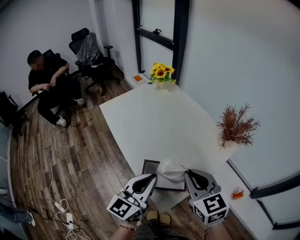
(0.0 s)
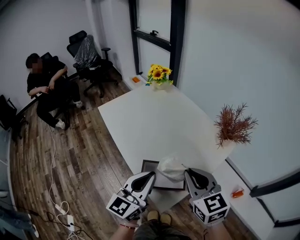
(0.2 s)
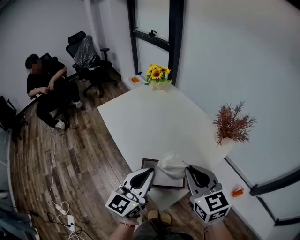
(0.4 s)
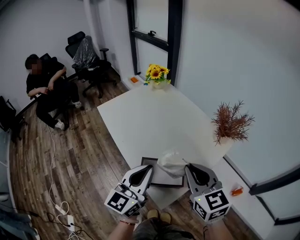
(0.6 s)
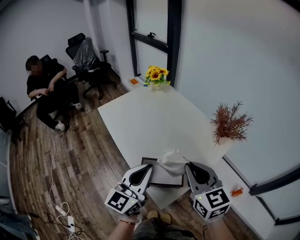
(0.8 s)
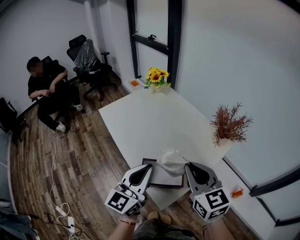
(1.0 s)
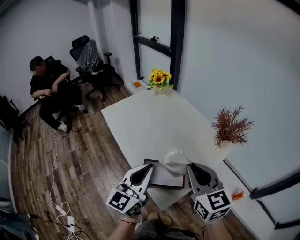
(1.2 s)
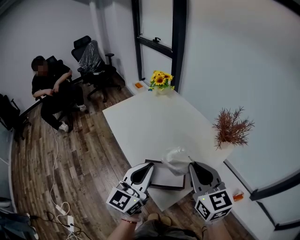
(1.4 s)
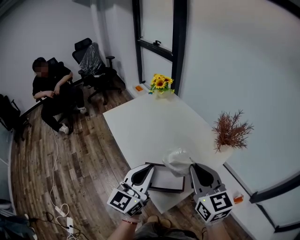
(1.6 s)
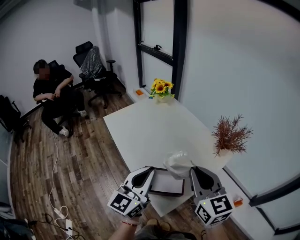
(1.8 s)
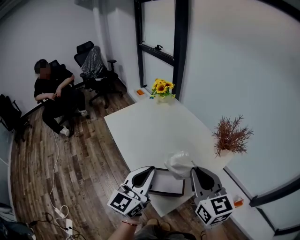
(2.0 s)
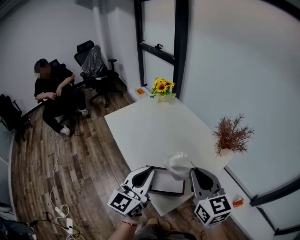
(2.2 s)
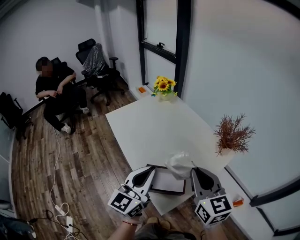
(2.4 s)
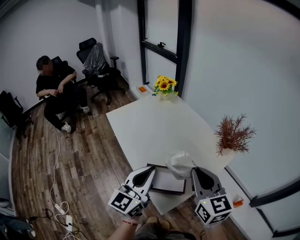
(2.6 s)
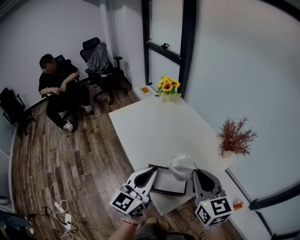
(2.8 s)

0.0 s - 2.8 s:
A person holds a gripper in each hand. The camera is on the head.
0.0 s - 1.4 s: The right gripper goes approximately 5 cm upward.
1.4 s - 2.8 s: There are only small adjustments of the grippers.

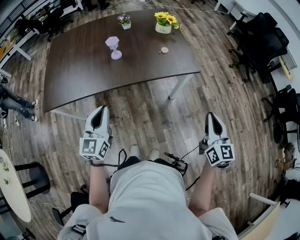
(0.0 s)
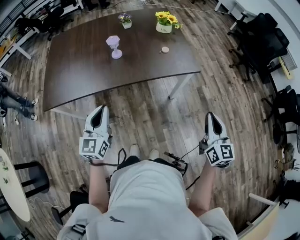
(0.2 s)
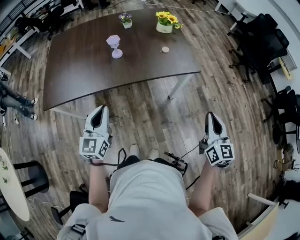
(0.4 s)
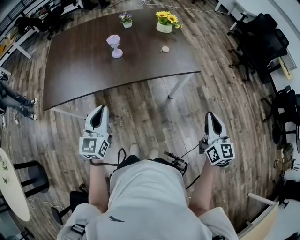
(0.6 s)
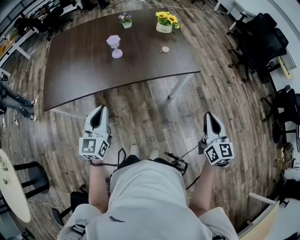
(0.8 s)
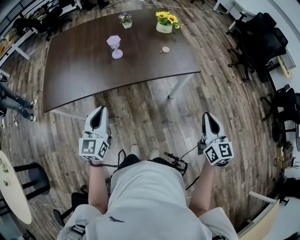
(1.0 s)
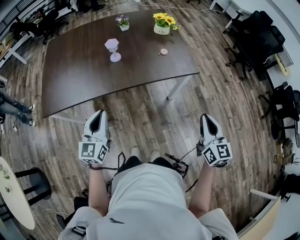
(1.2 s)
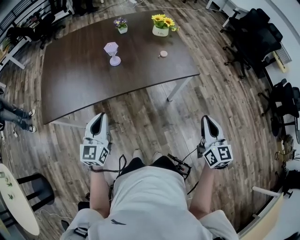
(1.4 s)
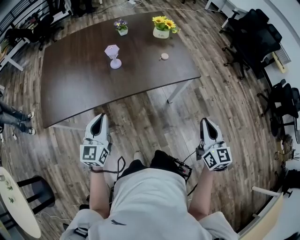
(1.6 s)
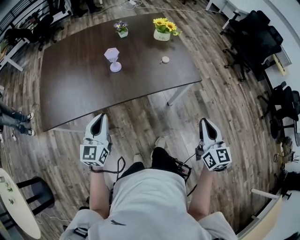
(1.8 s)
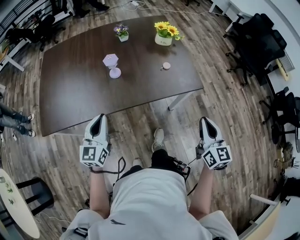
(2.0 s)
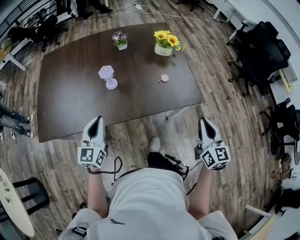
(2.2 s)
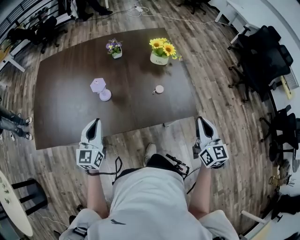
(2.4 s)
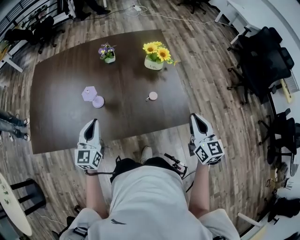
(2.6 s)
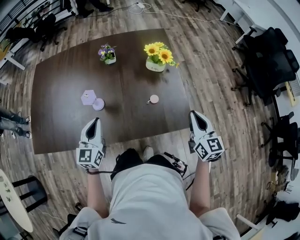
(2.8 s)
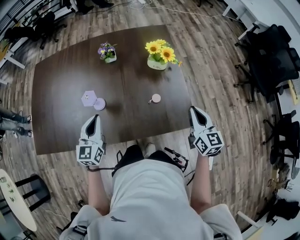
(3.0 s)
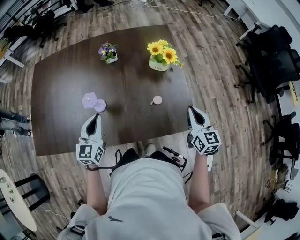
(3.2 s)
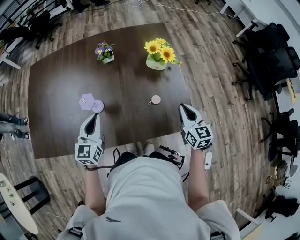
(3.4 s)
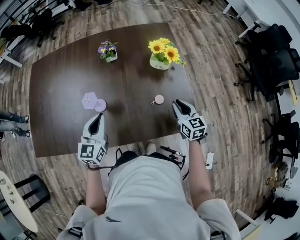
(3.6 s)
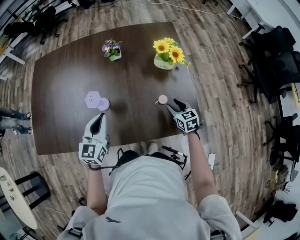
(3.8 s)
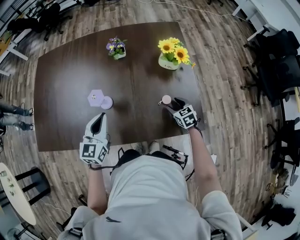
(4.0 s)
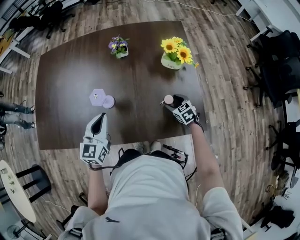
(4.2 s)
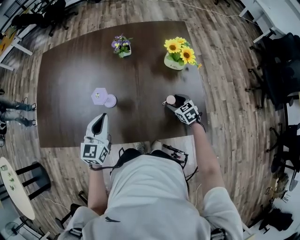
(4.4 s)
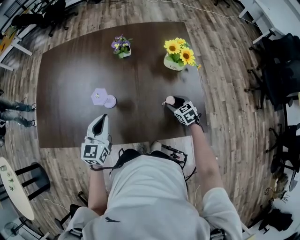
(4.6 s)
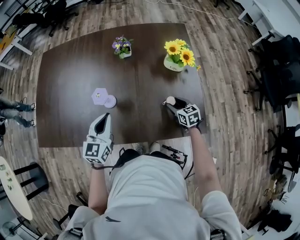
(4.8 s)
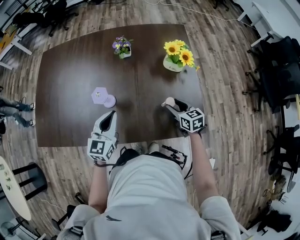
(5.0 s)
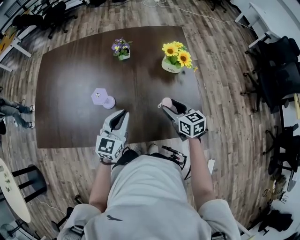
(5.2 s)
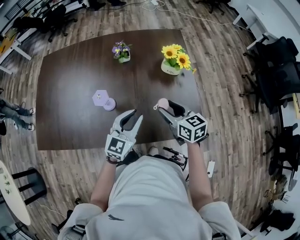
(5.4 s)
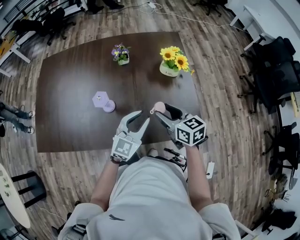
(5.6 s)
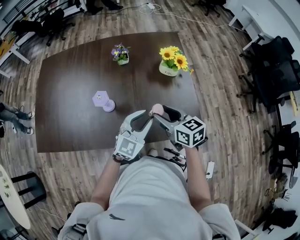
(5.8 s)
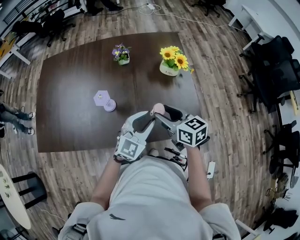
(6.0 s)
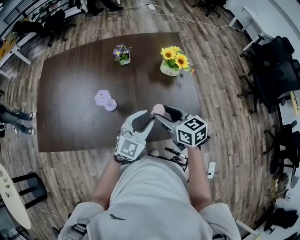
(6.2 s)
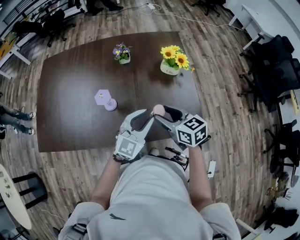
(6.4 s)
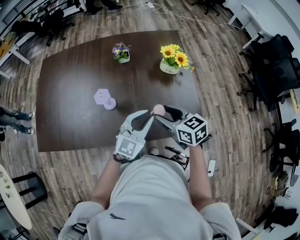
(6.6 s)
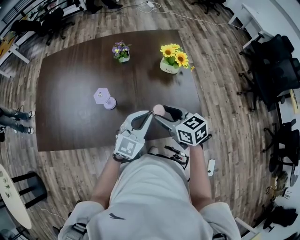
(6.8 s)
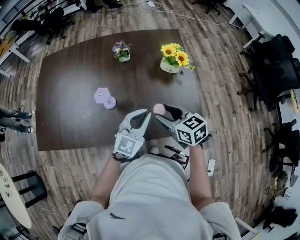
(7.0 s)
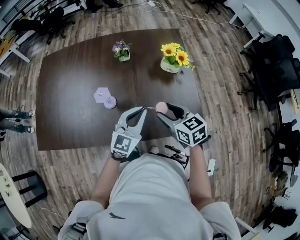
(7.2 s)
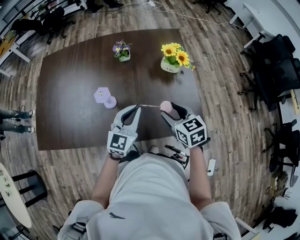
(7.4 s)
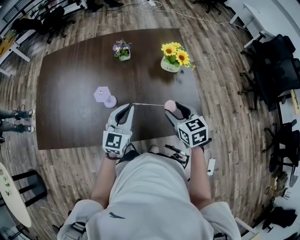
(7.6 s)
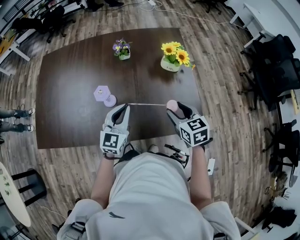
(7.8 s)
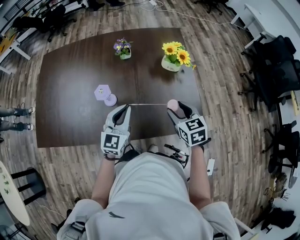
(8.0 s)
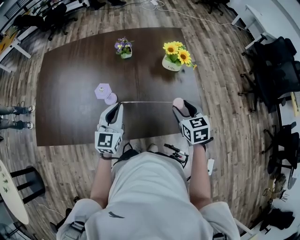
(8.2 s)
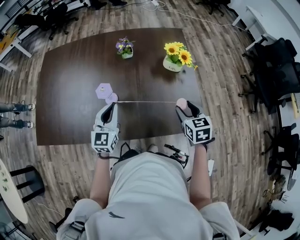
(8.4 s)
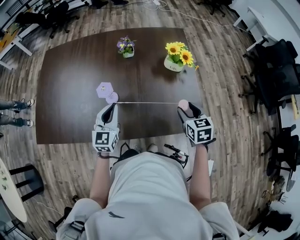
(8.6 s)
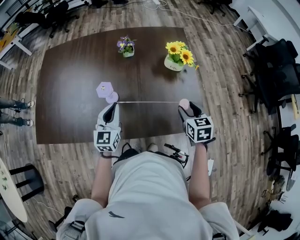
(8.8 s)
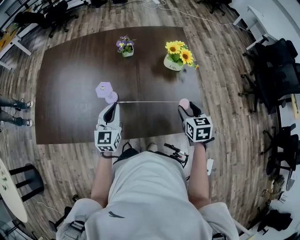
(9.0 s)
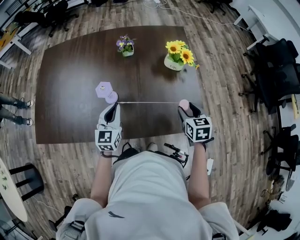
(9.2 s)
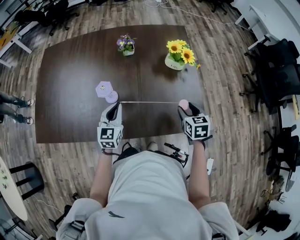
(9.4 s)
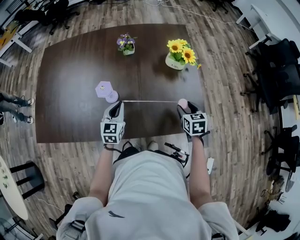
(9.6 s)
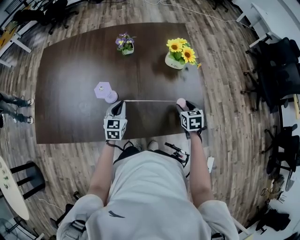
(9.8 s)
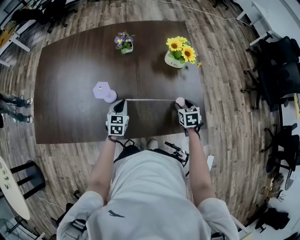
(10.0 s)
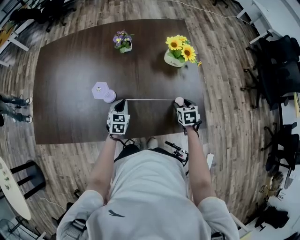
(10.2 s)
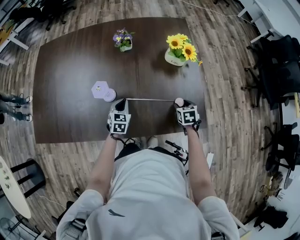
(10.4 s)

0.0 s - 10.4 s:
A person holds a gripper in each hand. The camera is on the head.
0.0 s - 1.4 s: The left gripper moves some 5 cm. Meanwhile the right gripper shifts about 5 cm to the left.
1.4 s - 3.0 s: The grippers both shift forward by about 35 cm.
3.0 s - 4.4 s: The right gripper heads downward, forward and to the left, covering some 30 cm, tips its fingers downward by approximately 30 degrees, and opens.
4.4 s - 6.0 s: The right gripper goes about 25 cm upward, and swivels approximately 30 degrees; the left gripper moves to the right, some 20 cm, turns by roughly 30 degrees, and opens.
6.0 s - 7.4 s: The left gripper is displaced to the left by roughly 5 cm, and closes.
7.4 s - 9.0 s: The left gripper is displaced to the left by about 10 cm. Meanwhile the right gripper heads to the right, covering about 10 cm.
9.0 s - 10.4 s: Both grippers travel together downward, roughly 20 cm. The left gripper turns by some 30 degrees.

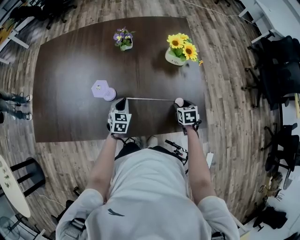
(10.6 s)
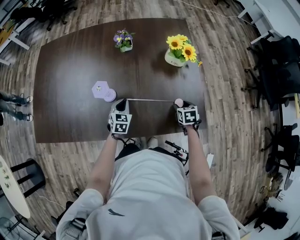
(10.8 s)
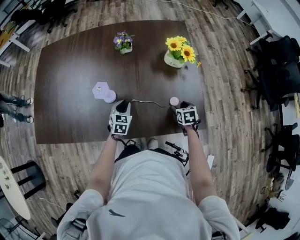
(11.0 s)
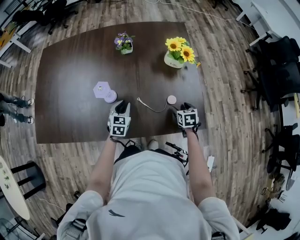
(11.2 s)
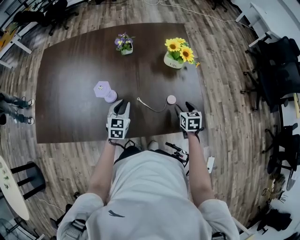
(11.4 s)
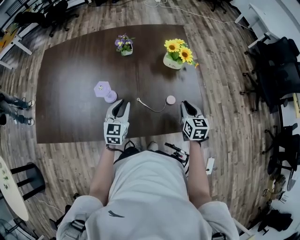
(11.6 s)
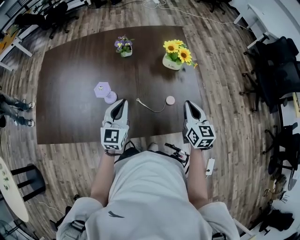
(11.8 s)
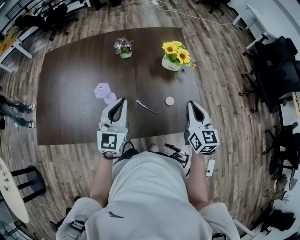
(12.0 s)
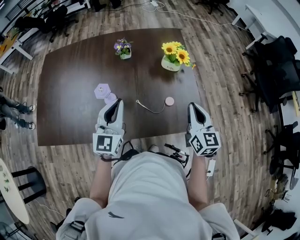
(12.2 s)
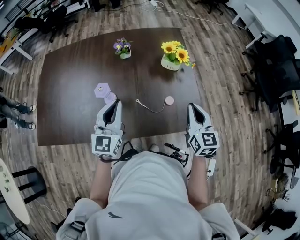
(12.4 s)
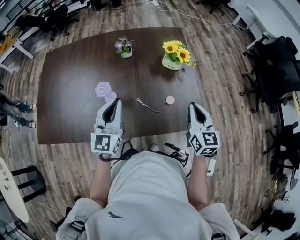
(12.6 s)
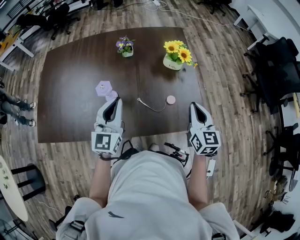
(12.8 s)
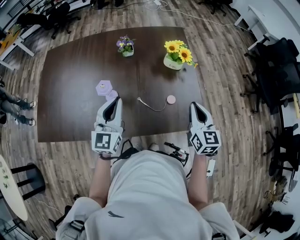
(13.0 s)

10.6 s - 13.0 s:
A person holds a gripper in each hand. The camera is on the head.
10.6 s - 11.8 s: The grippers both shift upward by about 20 cm. The right gripper angles its fingers upward, by some 40 degrees, and closes its fingers, while the left gripper tips its fingers upward by roughly 30 degrees.
11.8 s - 13.0 s: The right gripper changes place by roughly 5 cm, while the left gripper goes approximately 5 cm upward.

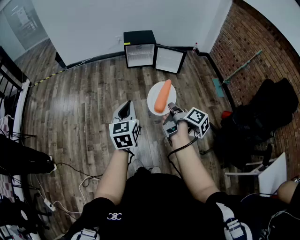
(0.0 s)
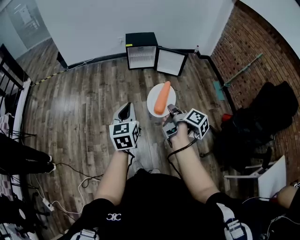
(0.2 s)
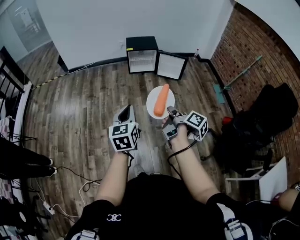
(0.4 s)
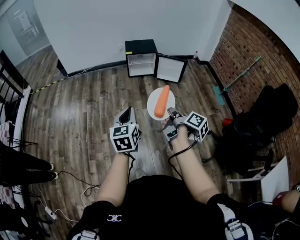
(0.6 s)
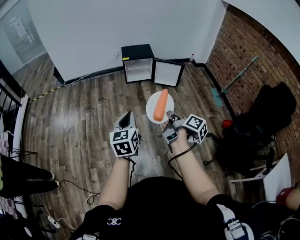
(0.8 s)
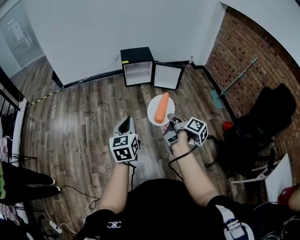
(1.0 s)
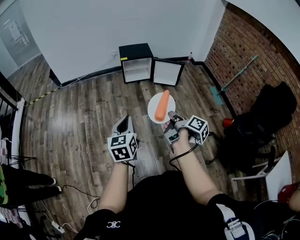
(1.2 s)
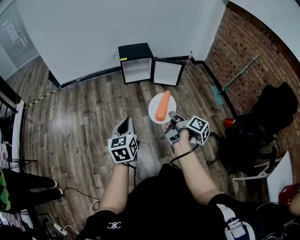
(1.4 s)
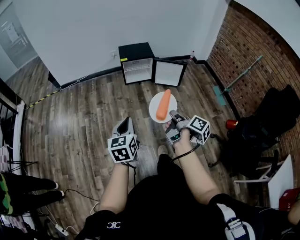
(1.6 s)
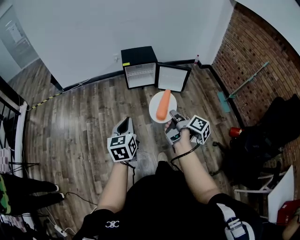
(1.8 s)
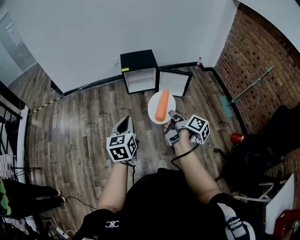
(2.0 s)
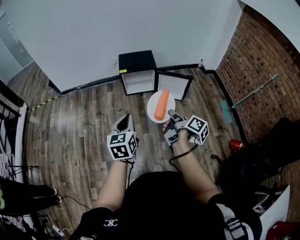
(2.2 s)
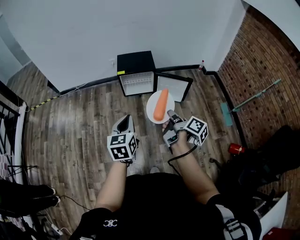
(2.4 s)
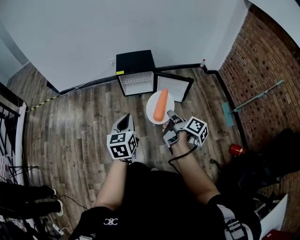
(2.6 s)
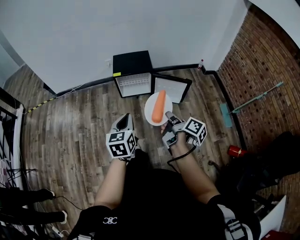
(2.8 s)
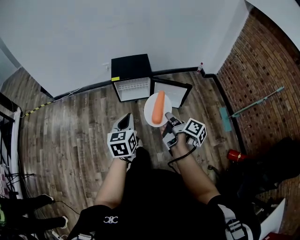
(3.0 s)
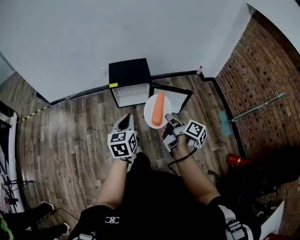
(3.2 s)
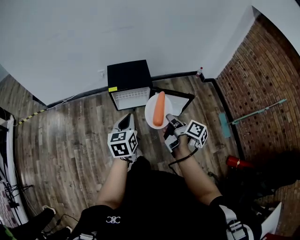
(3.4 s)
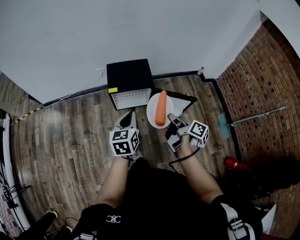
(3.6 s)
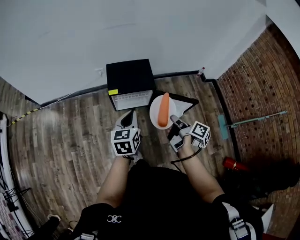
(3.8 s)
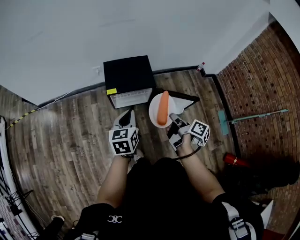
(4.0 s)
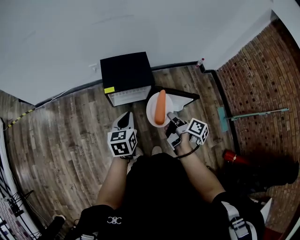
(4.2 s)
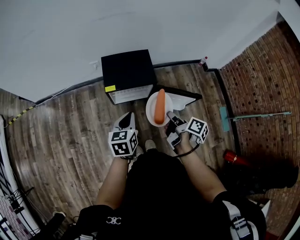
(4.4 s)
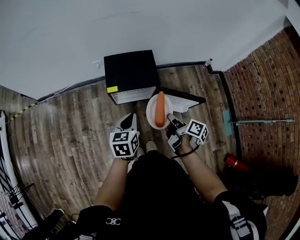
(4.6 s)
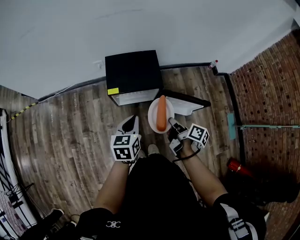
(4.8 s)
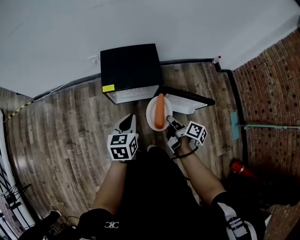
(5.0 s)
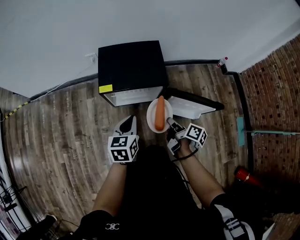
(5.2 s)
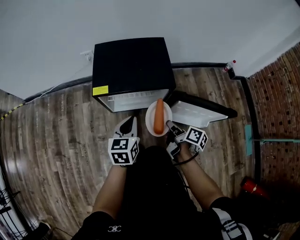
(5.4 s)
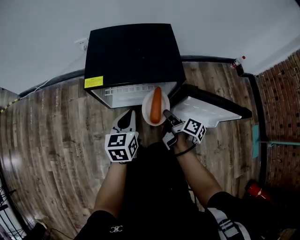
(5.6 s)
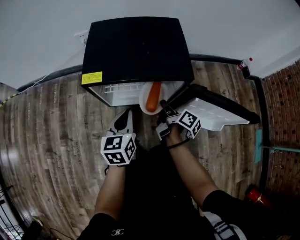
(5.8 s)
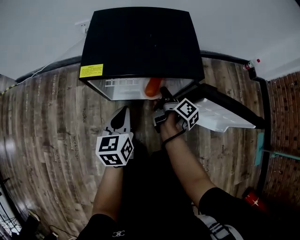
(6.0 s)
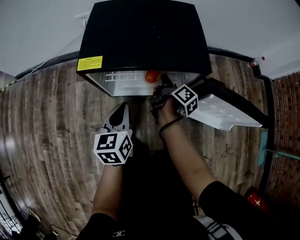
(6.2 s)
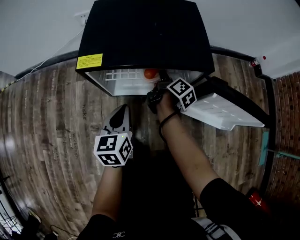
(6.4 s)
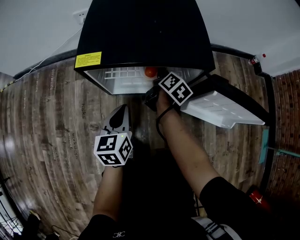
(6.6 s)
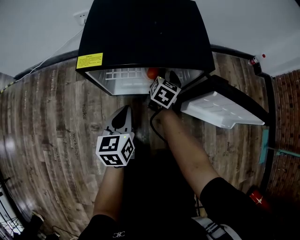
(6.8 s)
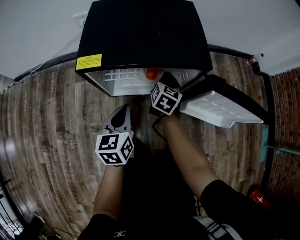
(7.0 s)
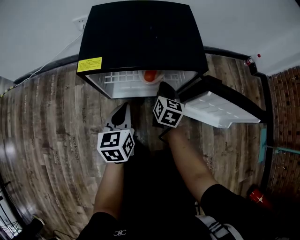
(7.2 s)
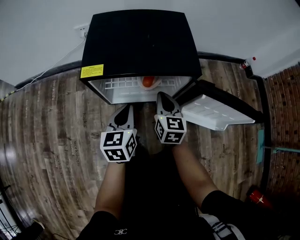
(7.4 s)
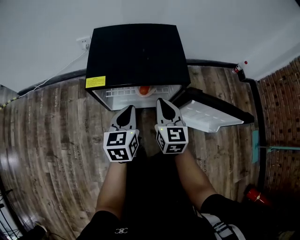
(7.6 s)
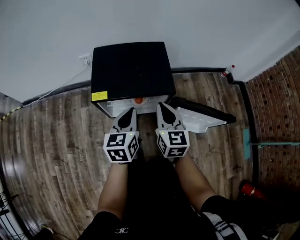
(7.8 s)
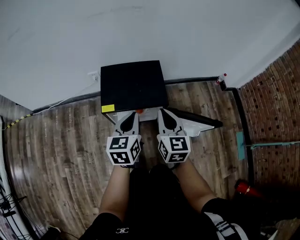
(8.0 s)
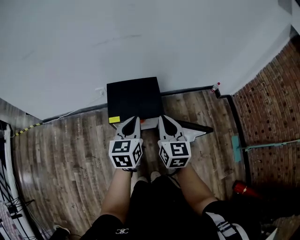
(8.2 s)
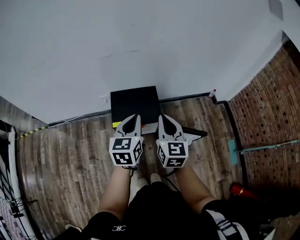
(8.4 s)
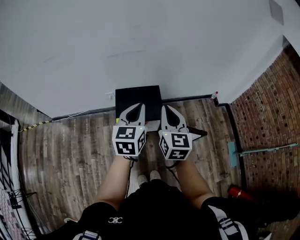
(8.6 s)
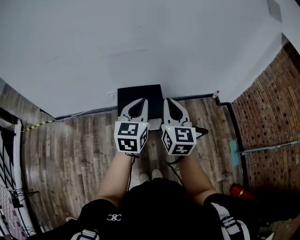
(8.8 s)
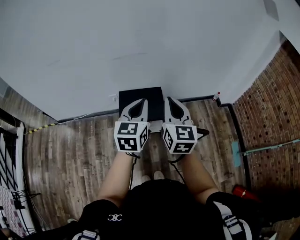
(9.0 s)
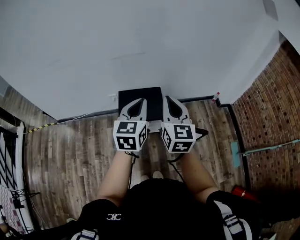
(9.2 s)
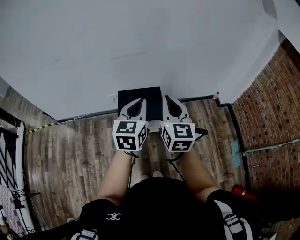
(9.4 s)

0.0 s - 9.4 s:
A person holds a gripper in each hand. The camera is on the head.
0.0 s - 1.6 s: The right gripper goes about 15 cm forward, while the left gripper is displaced forward and to the left by some 15 cm.
1.6 s - 3.2 s: Both grippers are carried forward, roughly 50 cm.
3.2 s - 4.8 s: The two grippers go some 30 cm forward and downward.
4.8 s - 6.2 s: The left gripper goes about 40 cm downward, while the right gripper heads downward and forward, covering roughly 60 cm.
6.2 s - 7.8 s: The left gripper shifts some 20 cm upward. Meanwhile the right gripper moves upward, some 30 cm, rotates around the line of its fingers by approximately 70 degrees, counterclockwise from behind, and opens and closes again.
7.8 s - 9.4 s: Both grippers move upward, roughly 50 cm.
